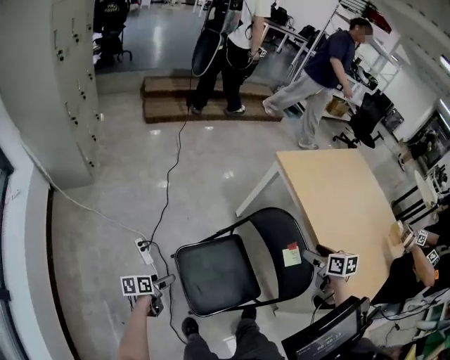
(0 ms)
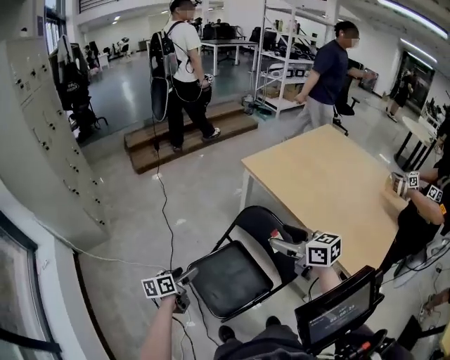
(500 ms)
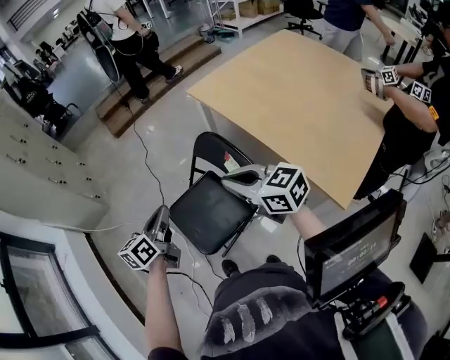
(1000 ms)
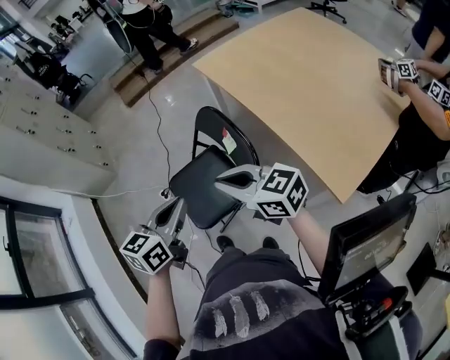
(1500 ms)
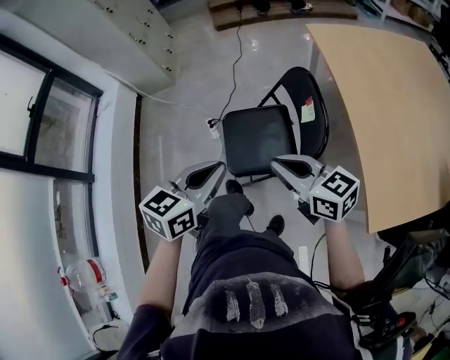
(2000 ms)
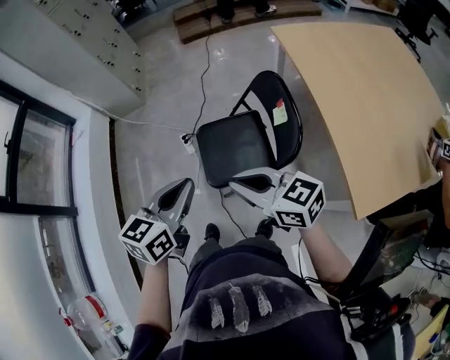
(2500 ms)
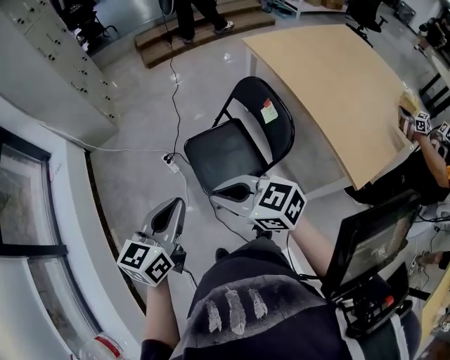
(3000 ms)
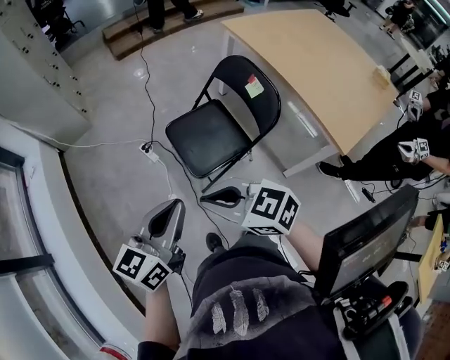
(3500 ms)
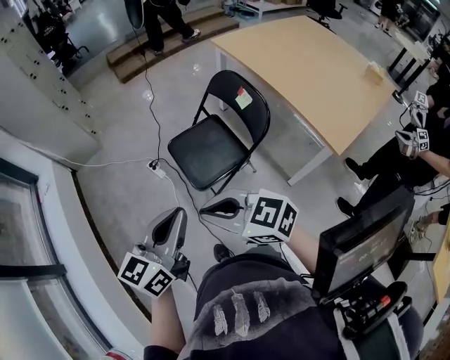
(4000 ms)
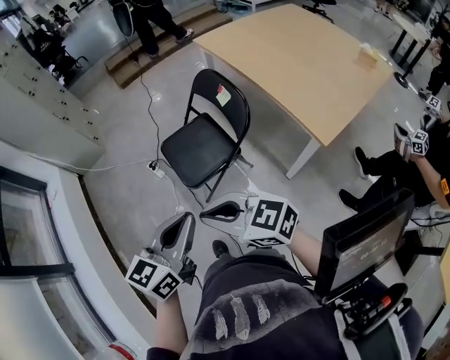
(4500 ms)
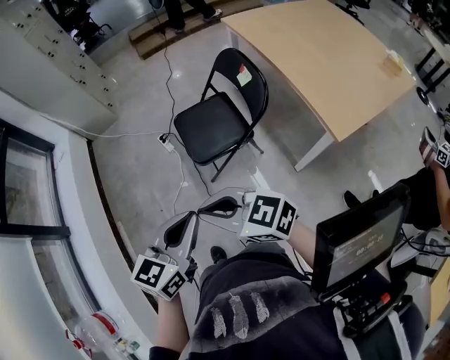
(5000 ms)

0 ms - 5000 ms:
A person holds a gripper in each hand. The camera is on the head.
0 ms - 2500 ms: The right gripper moves approximately 35 cm, points its fingers some 40 degrees further upward, and closes, while the left gripper moves upward, approximately 40 cm, twists approximately 40 degrees clockwise, seen from behind, and closes up.
2500 ms - 5000 ms: The left gripper heads backward, covering some 25 cm, while the right gripper heads backward and to the left, covering approximately 30 cm.

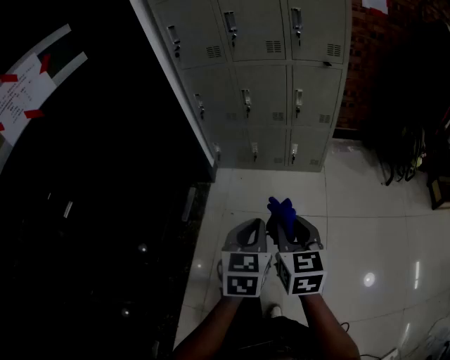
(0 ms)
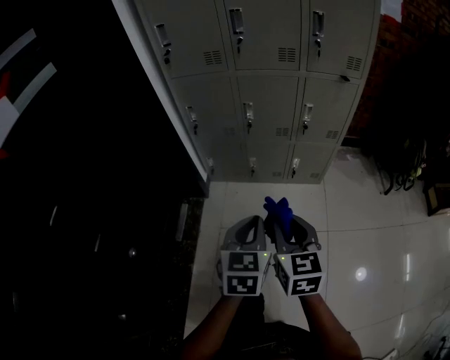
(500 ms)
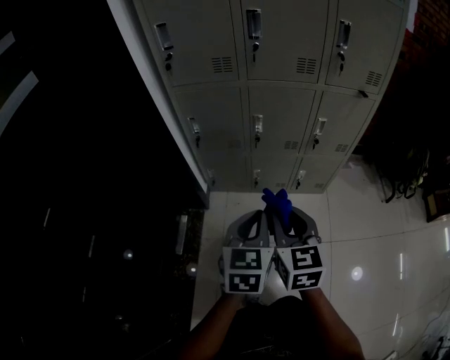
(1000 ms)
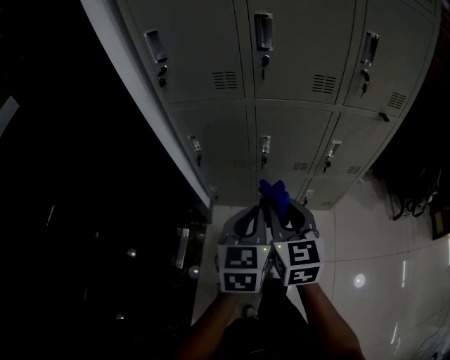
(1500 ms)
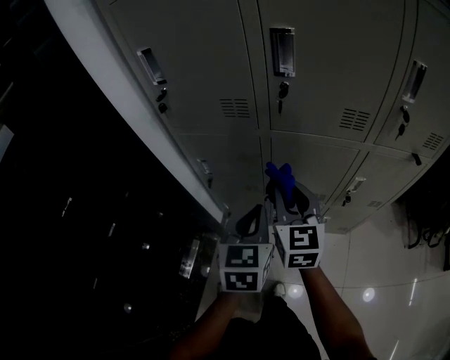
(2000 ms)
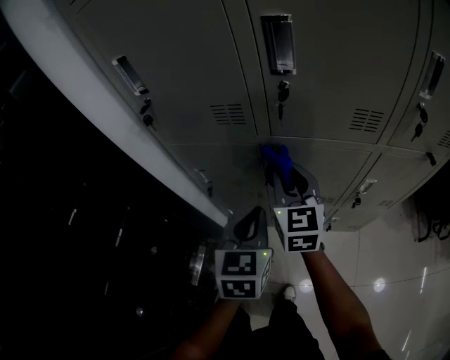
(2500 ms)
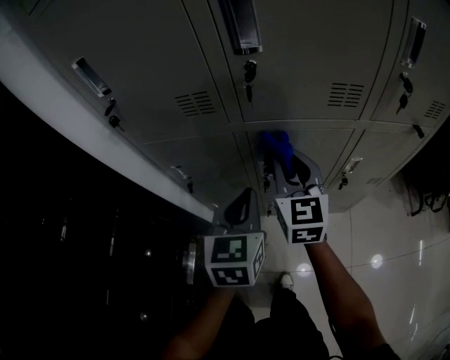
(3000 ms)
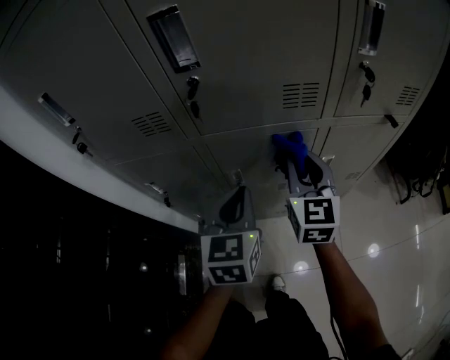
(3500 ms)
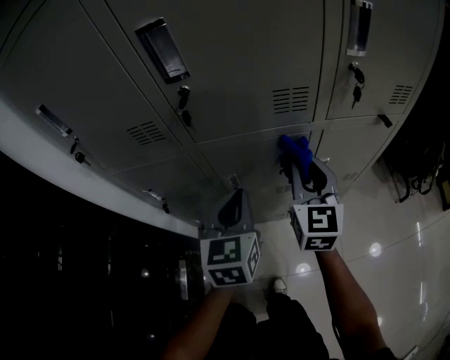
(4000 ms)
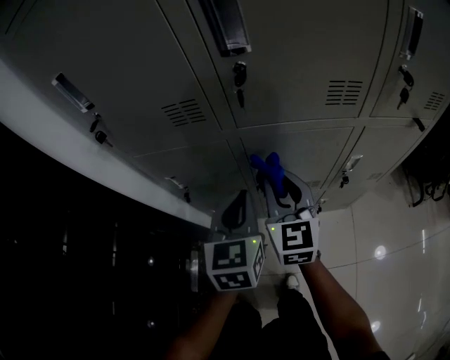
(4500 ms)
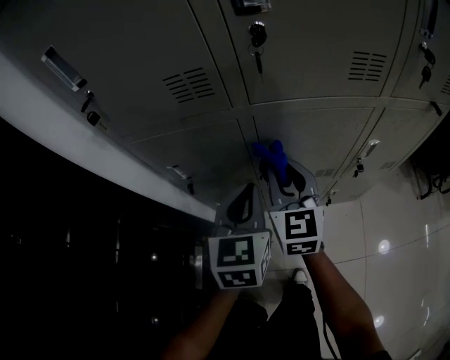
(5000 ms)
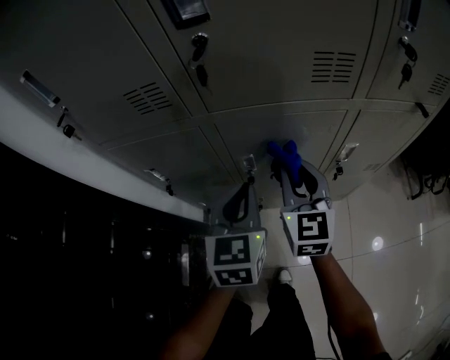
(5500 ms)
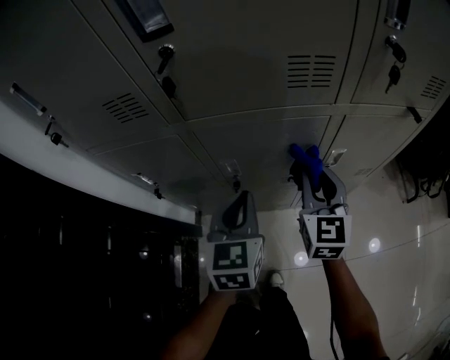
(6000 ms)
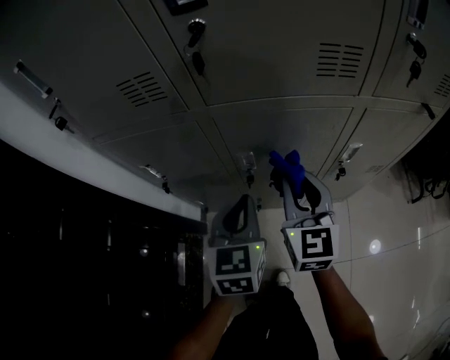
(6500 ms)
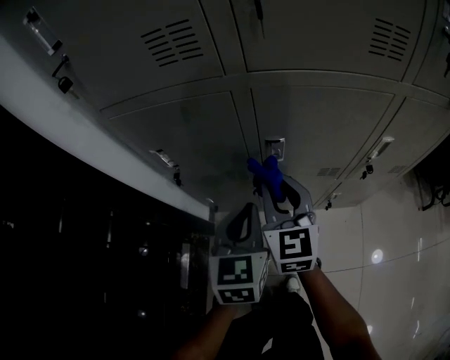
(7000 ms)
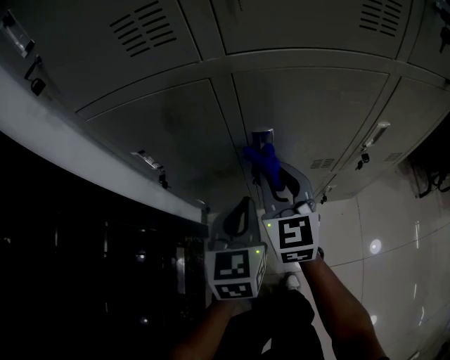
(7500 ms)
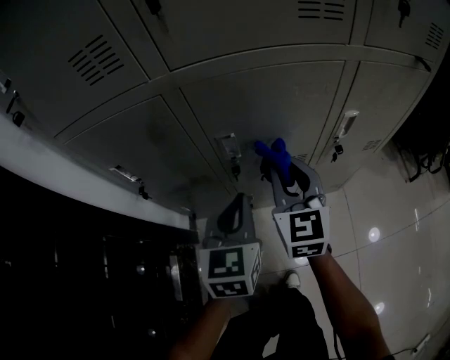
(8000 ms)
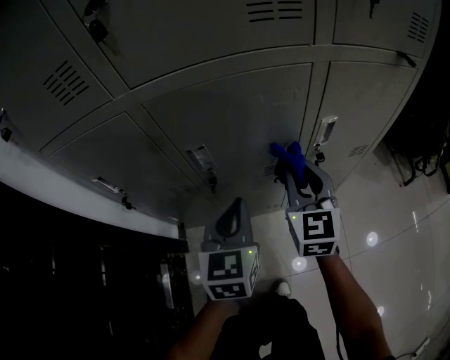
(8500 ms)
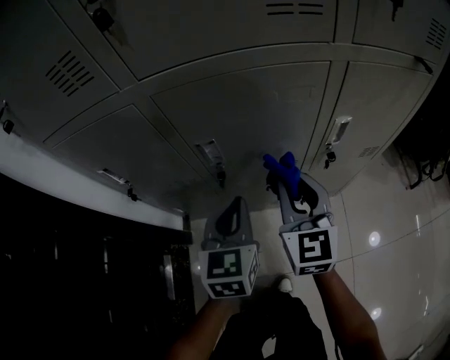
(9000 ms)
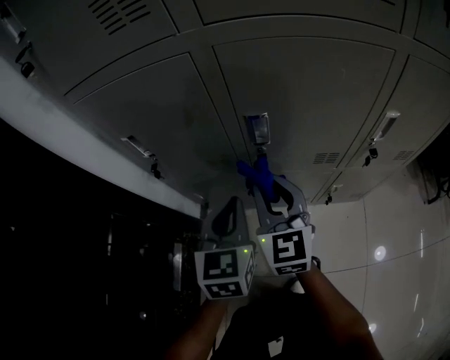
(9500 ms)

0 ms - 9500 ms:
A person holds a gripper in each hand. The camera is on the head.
0 ms - 2000 ms: The pair of grippers is taken forward, some 60 cm.
2000 ms - 4000 ms: The left gripper moves forward and to the right, some 10 cm; the right gripper travels to the right and forward by about 20 cm, and turns by about 20 degrees.
4000 ms - 5500 ms: The left gripper travels downward by about 5 cm; the right gripper shifts approximately 10 cm to the left and downward.
5500 ms - 7500 ms: The right gripper heads to the left and downward, covering approximately 15 cm; the left gripper heads downward and to the left, covering some 15 cm.
7500 ms - 9500 ms: The left gripper reaches about 10 cm to the right, then returns. Meanwhile the right gripper shifts approximately 5 cm downward, and travels to the right and back again, approximately 20 cm each way.

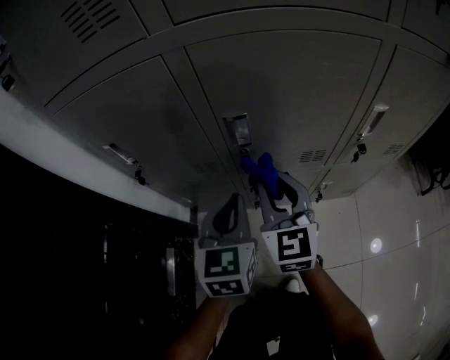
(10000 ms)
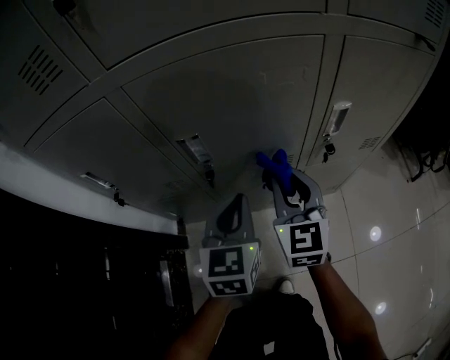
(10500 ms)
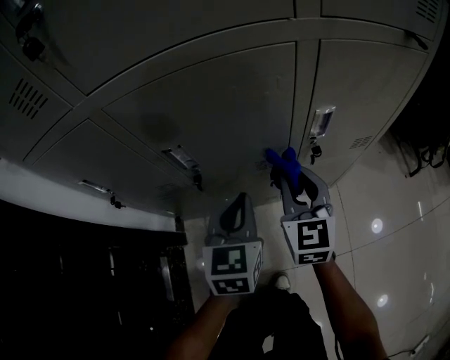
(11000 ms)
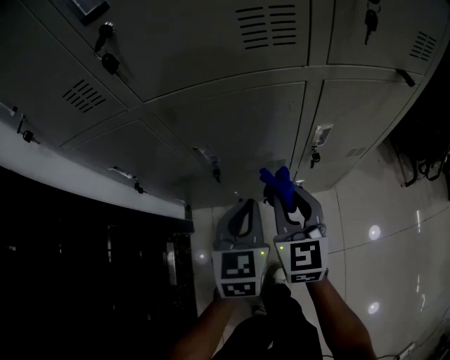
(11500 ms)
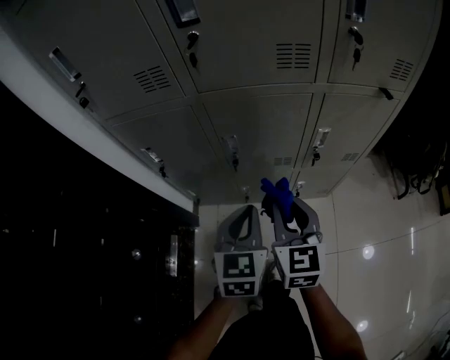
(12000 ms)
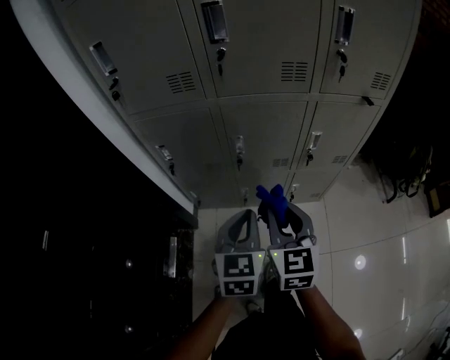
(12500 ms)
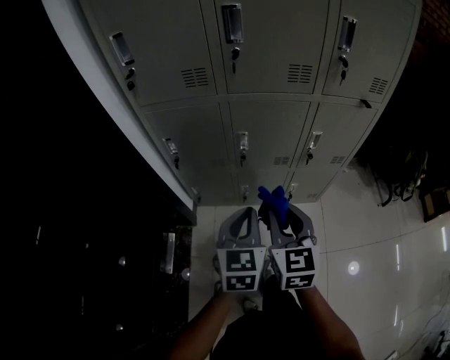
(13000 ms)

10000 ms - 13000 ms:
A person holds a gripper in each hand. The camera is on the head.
10000 ms - 11500 ms: The grippers both shift to the right and upward by roughly 15 cm.
11500 ms - 13000 ms: The two grippers go about 25 cm backward, upward and to the left.

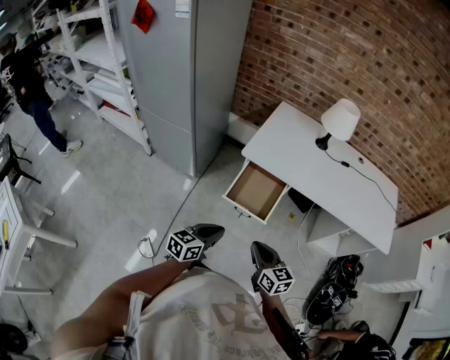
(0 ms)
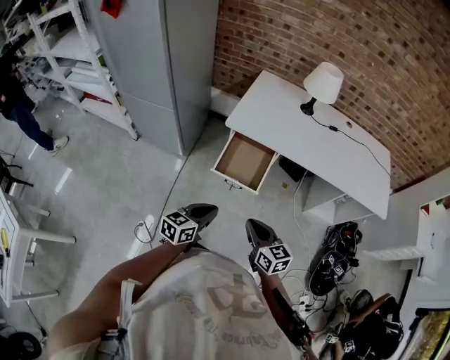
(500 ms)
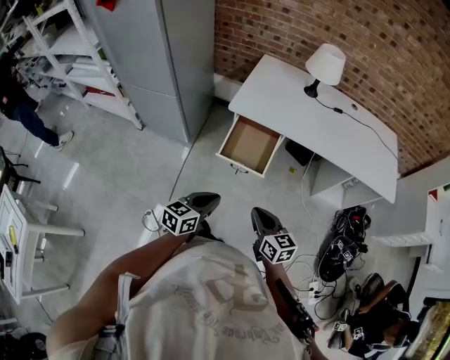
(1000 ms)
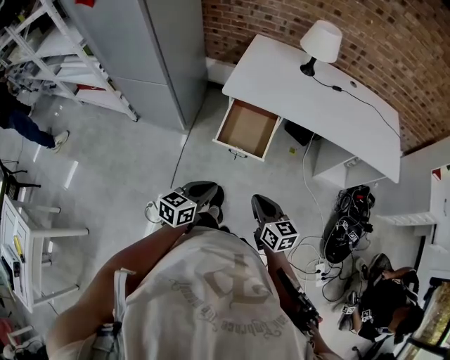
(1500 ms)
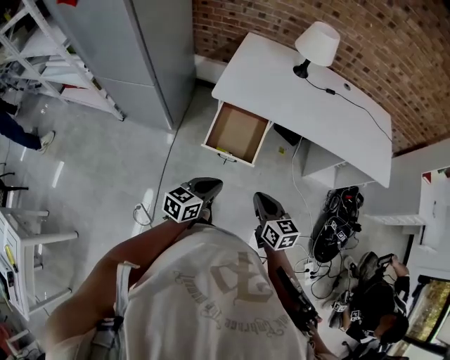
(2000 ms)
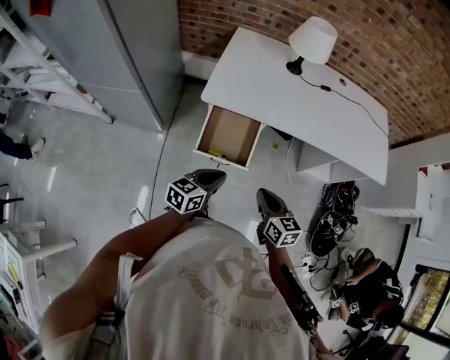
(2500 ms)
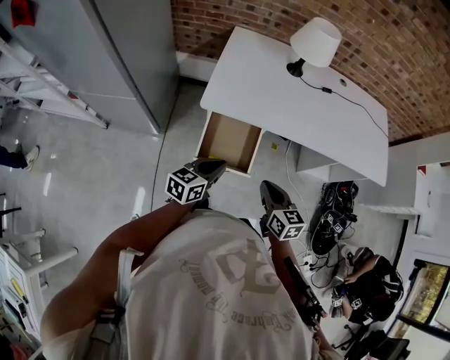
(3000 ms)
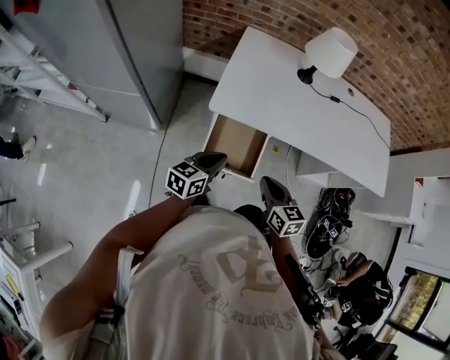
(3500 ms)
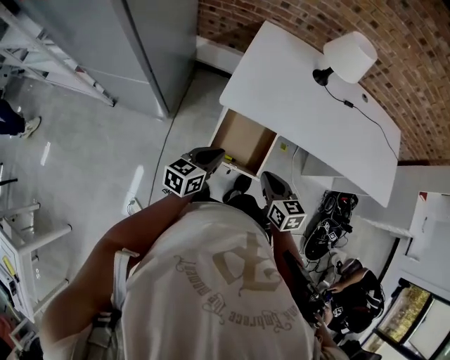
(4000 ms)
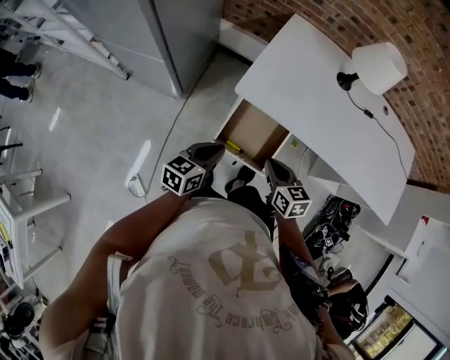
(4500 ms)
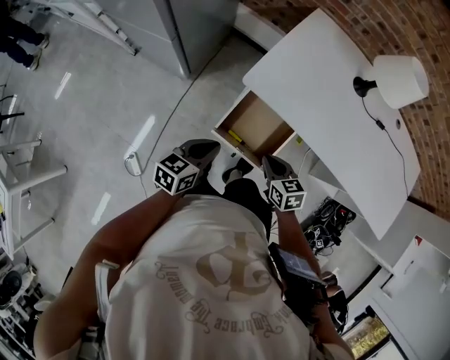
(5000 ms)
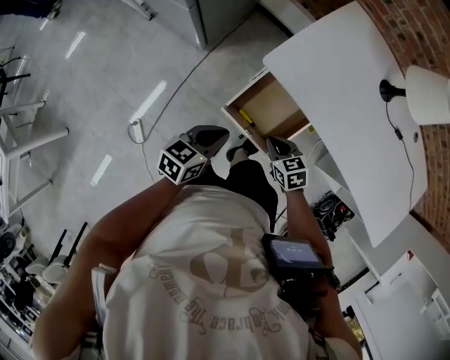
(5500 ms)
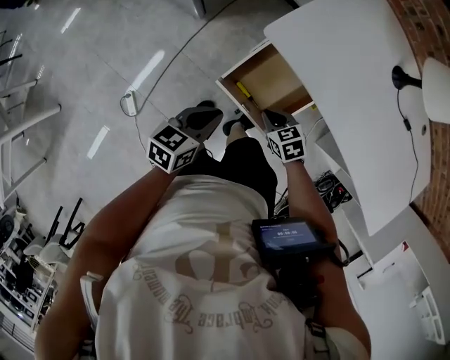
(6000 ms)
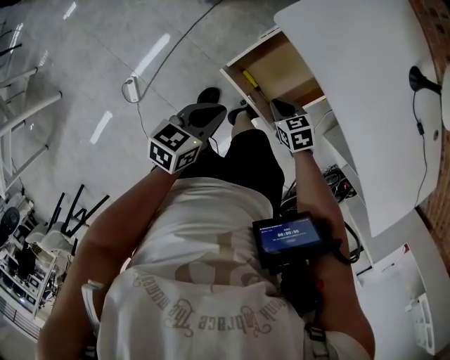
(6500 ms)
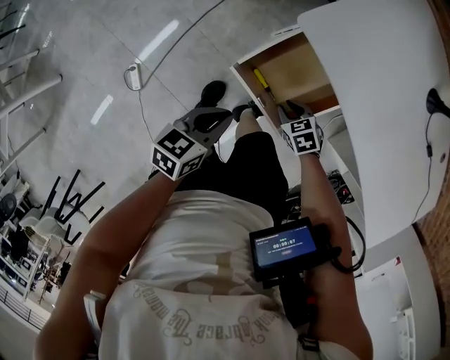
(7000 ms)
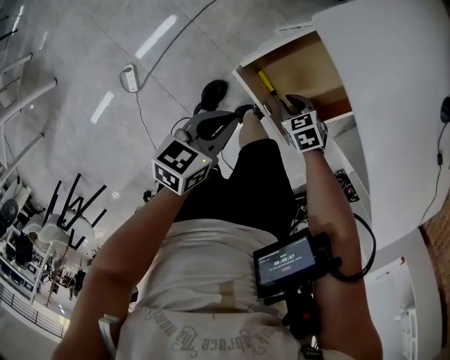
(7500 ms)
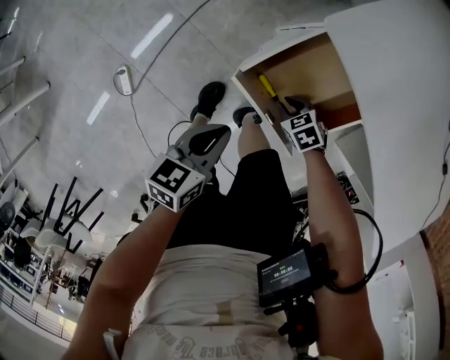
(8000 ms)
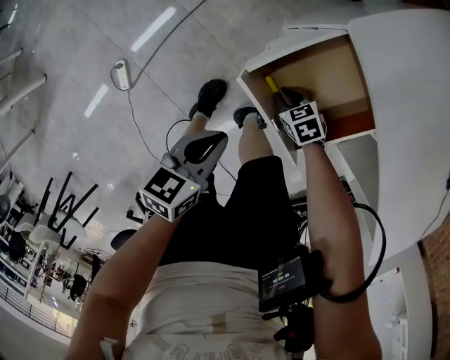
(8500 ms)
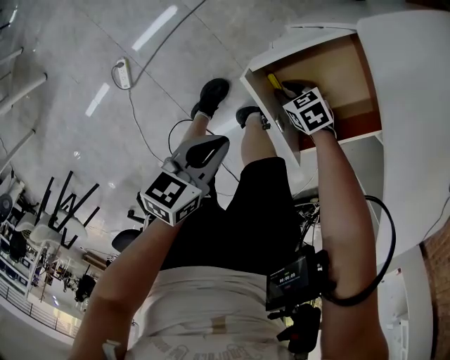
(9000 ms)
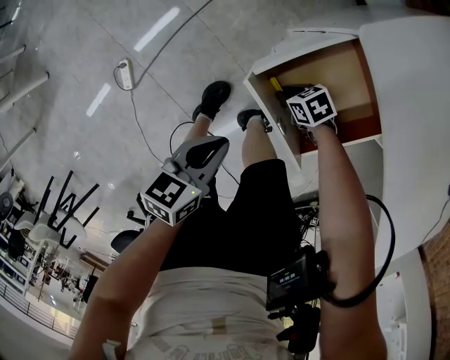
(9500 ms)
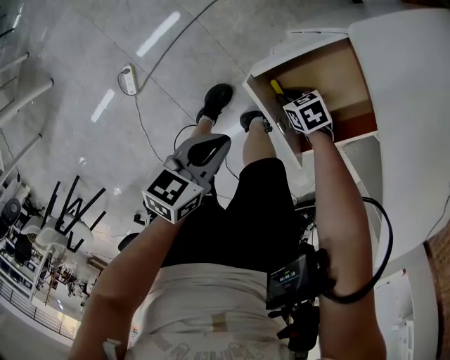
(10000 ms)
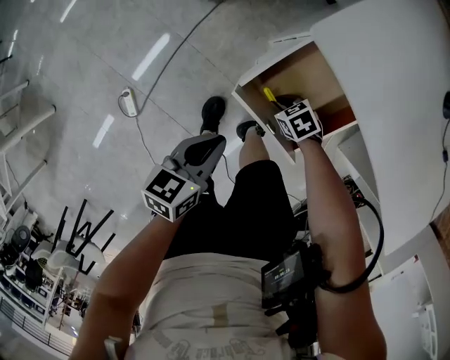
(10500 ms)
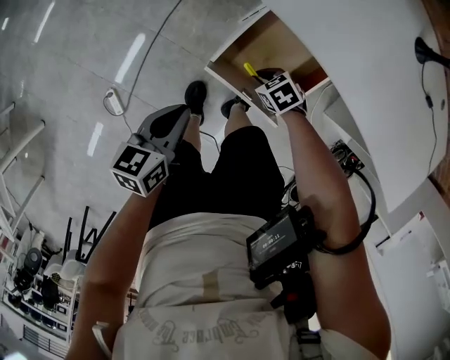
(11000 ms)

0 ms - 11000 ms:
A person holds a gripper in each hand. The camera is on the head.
0 ms - 2000 ms: The right gripper changes place by about 5 cm; the left gripper moves forward, about 5 cm.
2000 ms - 3500 ms: The two grippers go roughly 20 cm forward and to the left.
3500 ms - 5500 ms: The left gripper heads downward, covering approximately 10 cm, and rotates roughly 20 degrees. The right gripper moves downward, approximately 20 cm, and rotates some 50 degrees.
5500 ms - 7500 ms: The right gripper travels downward by approximately 20 cm, and changes its angle by about 30 degrees; the left gripper heads downward, covering about 10 cm.
7500 ms - 9000 ms: Both grippers travel together downward, some 10 cm.
9000 ms - 11000 ms: The two grippers go roughly 10 cm upward.
